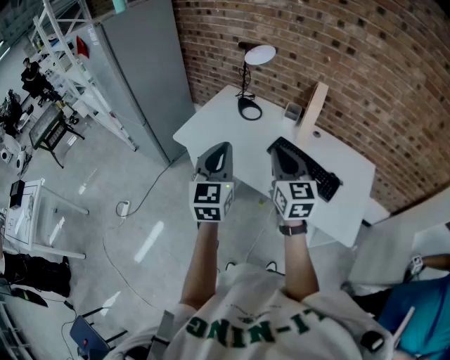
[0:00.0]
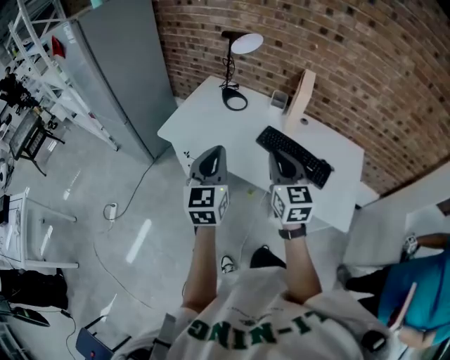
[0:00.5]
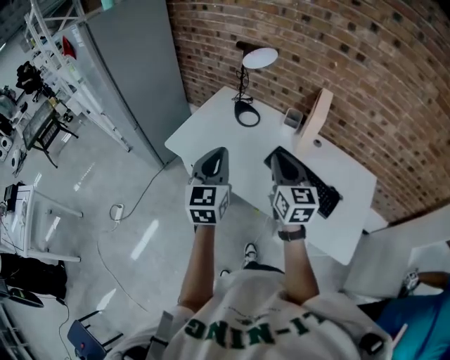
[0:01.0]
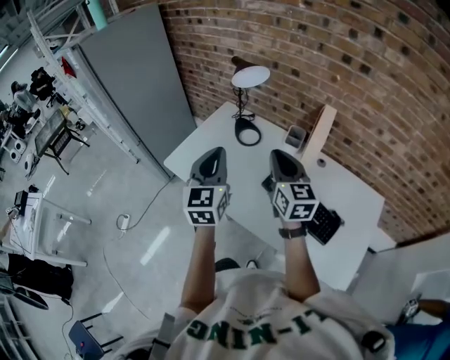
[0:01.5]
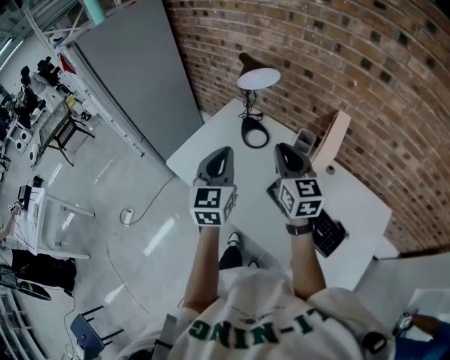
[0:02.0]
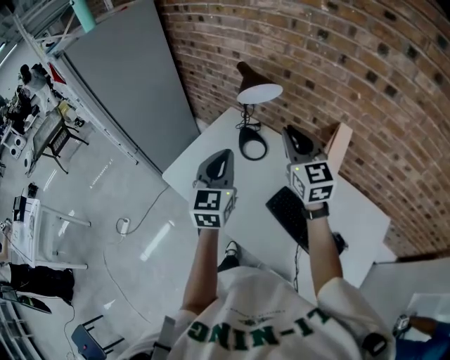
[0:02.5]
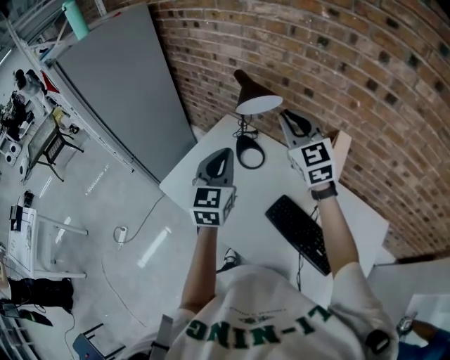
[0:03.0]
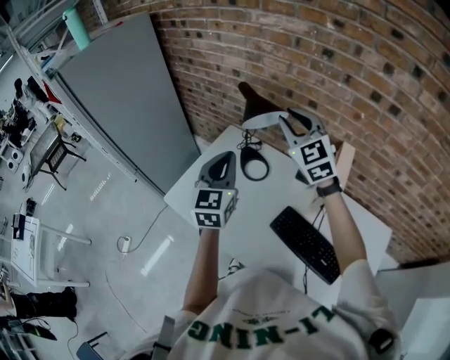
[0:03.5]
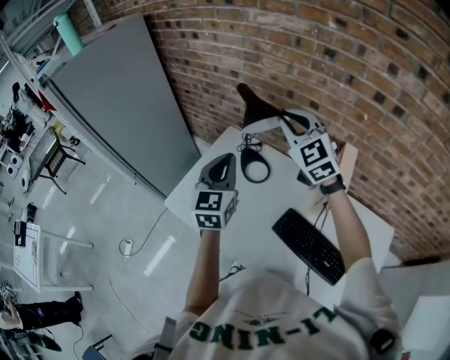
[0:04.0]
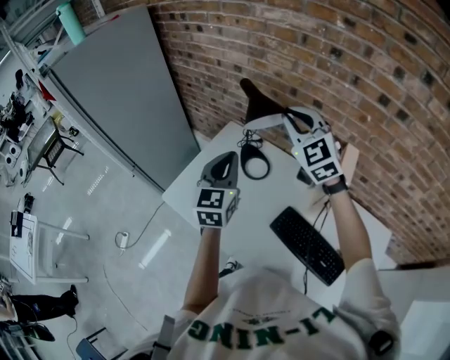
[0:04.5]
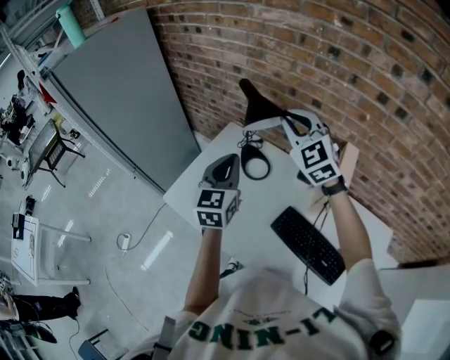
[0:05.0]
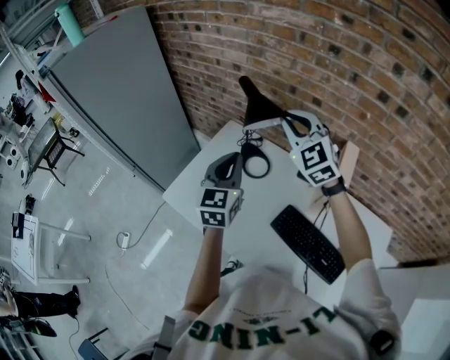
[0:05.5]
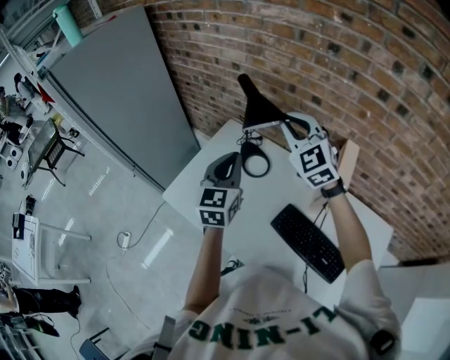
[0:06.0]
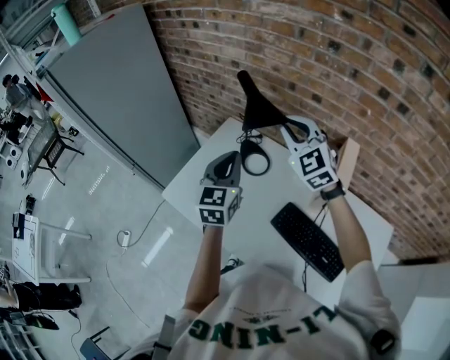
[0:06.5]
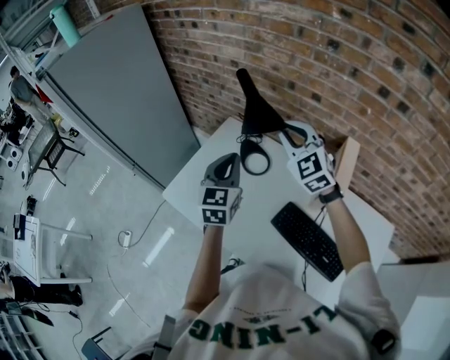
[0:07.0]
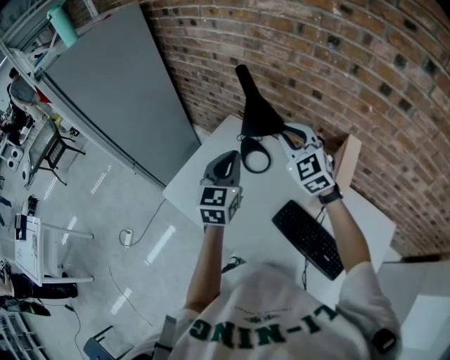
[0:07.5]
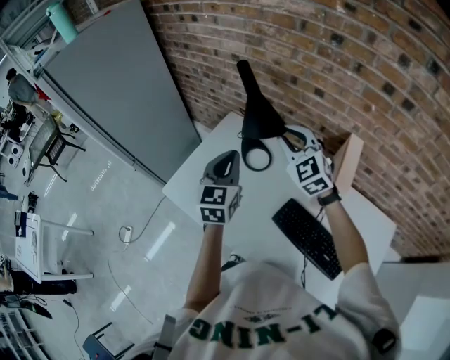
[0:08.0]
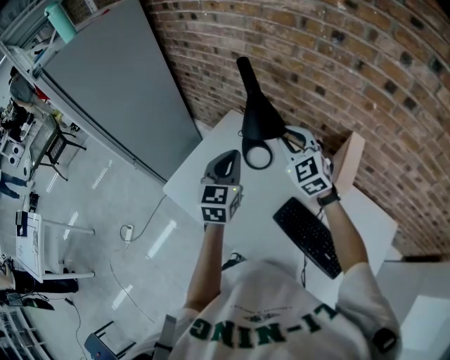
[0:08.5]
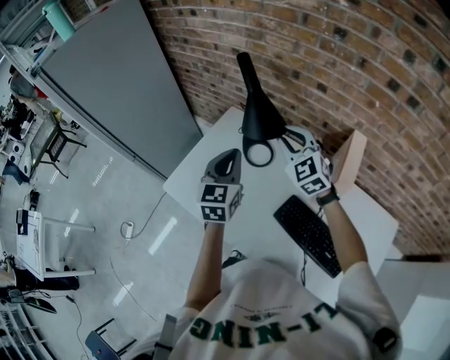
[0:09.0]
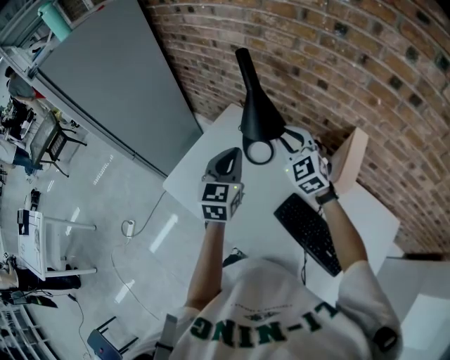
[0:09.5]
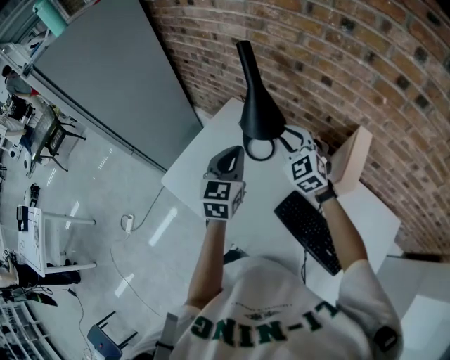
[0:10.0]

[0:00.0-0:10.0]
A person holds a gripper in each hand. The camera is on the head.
0:00.0 to 0:02.0: Both grippers travel together forward, about 25 cm.
0:02.0 to 0:04.0: The right gripper travels forward and upward by about 25 cm, and swivels approximately 40 degrees, while the left gripper goes approximately 15 cm forward.
0:04.0 to 0:06.0: The grippers move only a little.
0:06.0 to 0:08.0: The right gripper travels downward by some 10 cm.
0:08.0 to 0:10.0: The right gripper travels downward by about 10 cm.

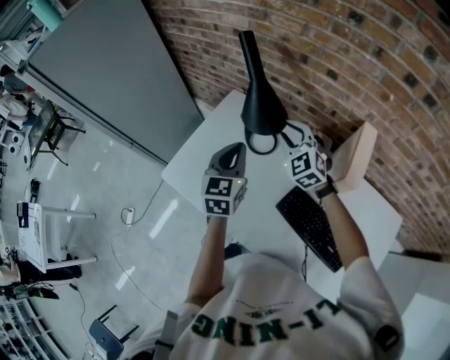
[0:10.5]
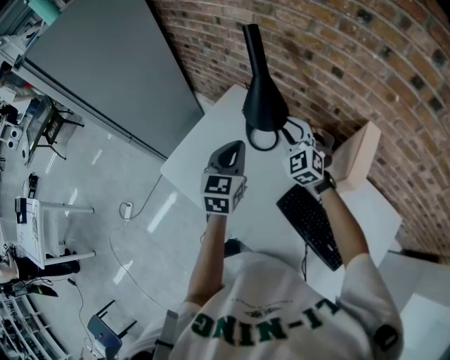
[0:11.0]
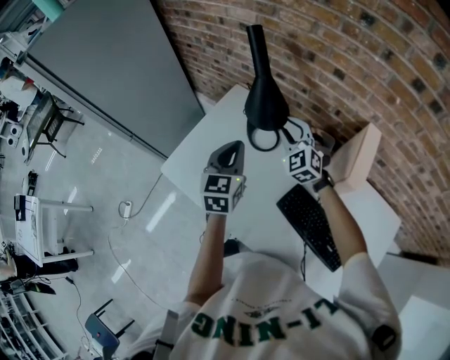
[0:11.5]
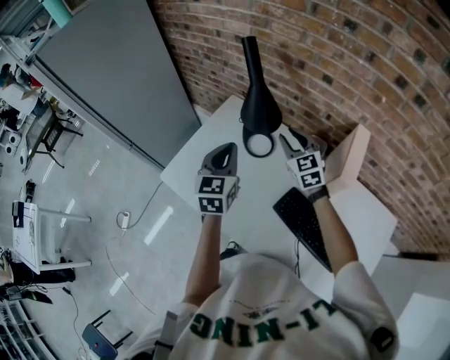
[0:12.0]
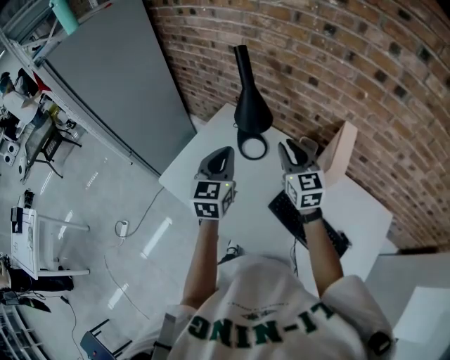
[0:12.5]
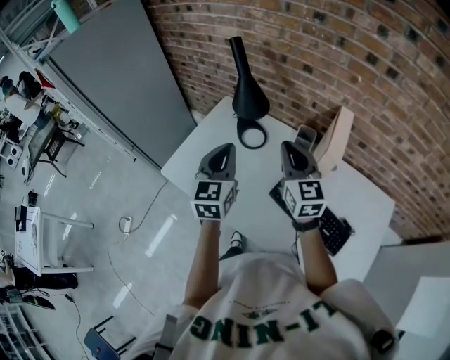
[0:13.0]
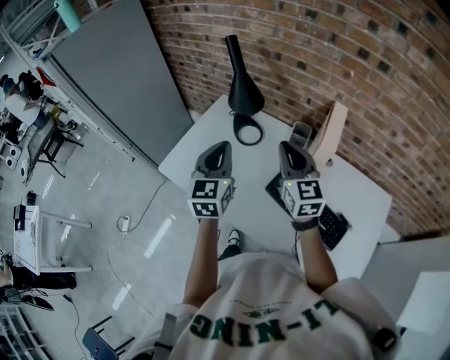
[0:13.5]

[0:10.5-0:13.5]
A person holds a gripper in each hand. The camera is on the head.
0:10.5 to 0:12.0: The right gripper changes its angle by about 20 degrees.
0:12.0 to 0:13.5: The left gripper goes approximately 15 cm backward and upward, while the right gripper moves backward and upward, some 20 cm, rotates about 20 degrees, and closes its fingers.

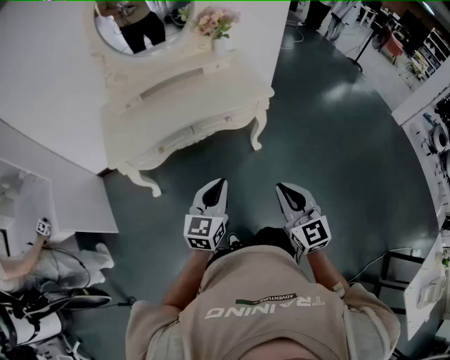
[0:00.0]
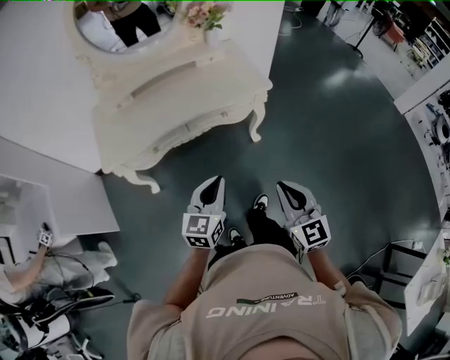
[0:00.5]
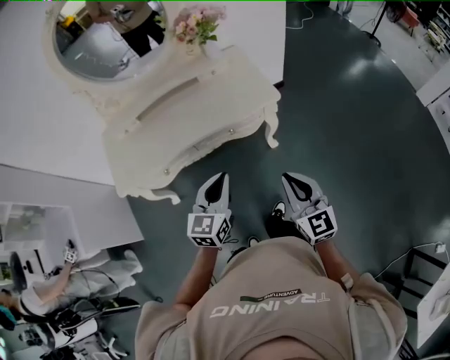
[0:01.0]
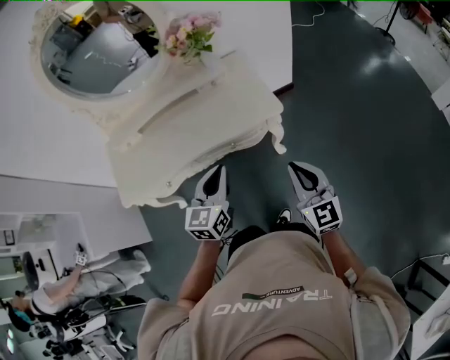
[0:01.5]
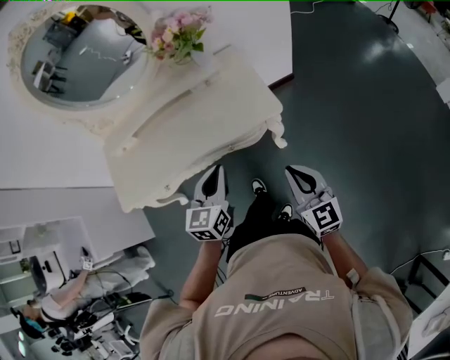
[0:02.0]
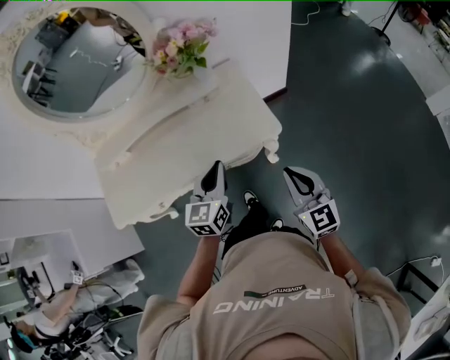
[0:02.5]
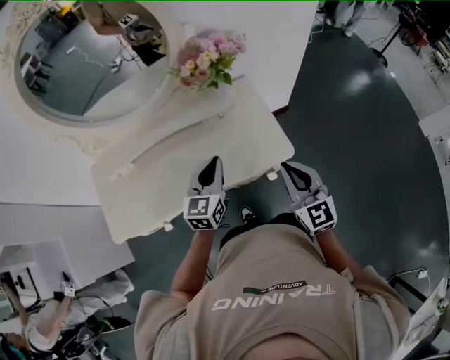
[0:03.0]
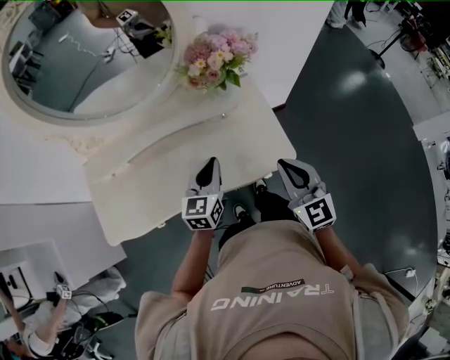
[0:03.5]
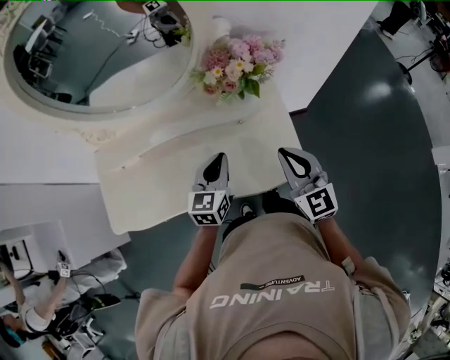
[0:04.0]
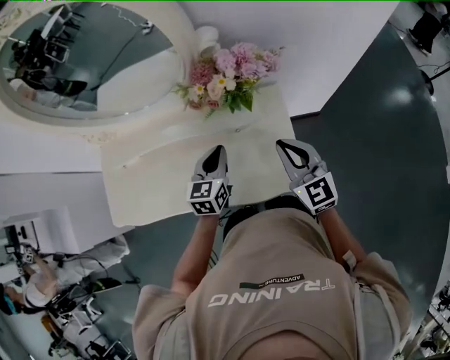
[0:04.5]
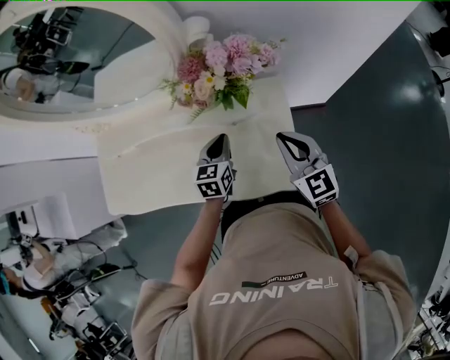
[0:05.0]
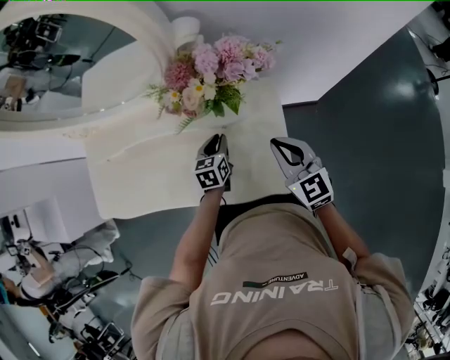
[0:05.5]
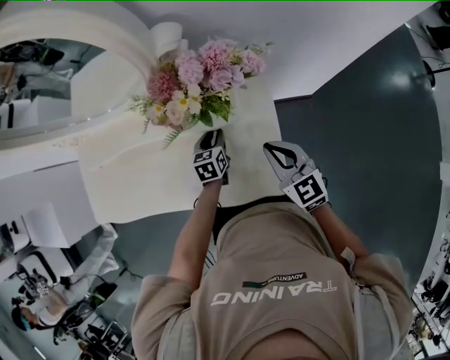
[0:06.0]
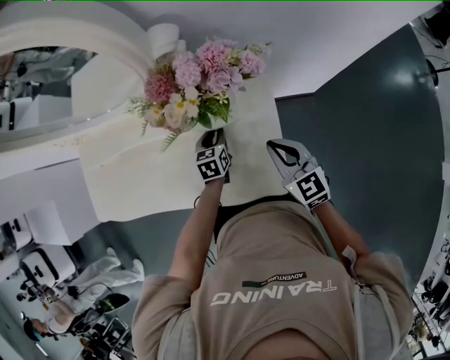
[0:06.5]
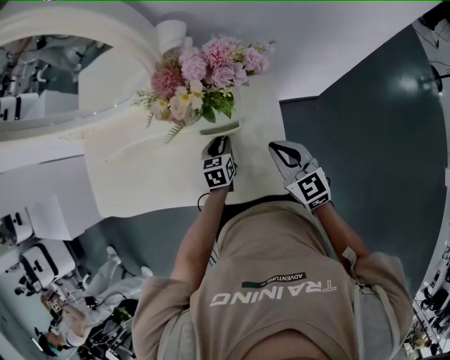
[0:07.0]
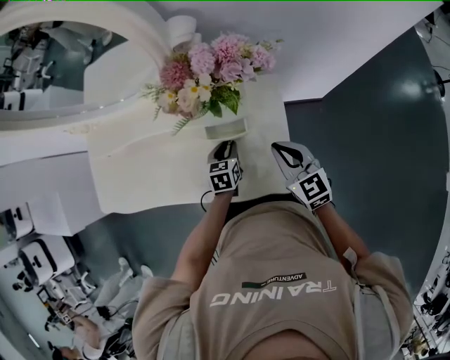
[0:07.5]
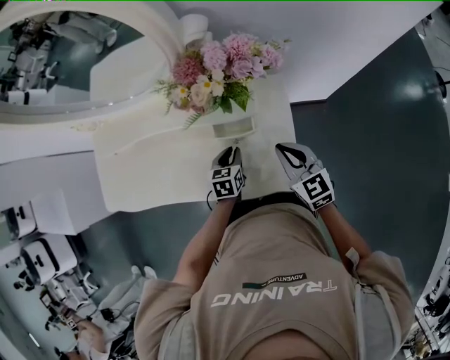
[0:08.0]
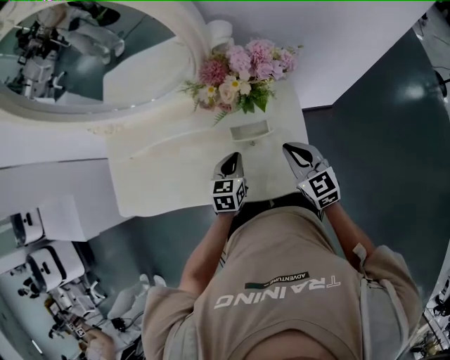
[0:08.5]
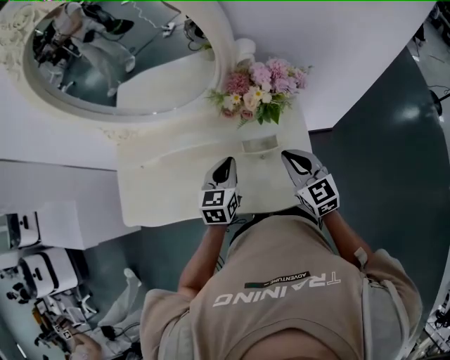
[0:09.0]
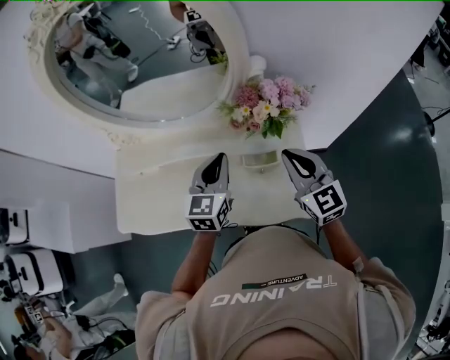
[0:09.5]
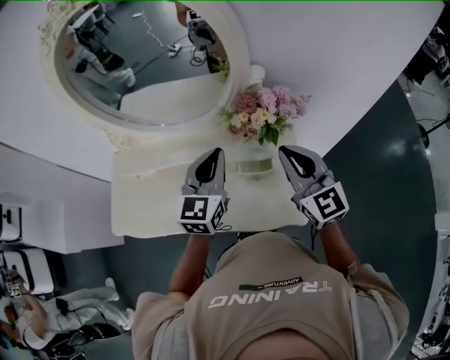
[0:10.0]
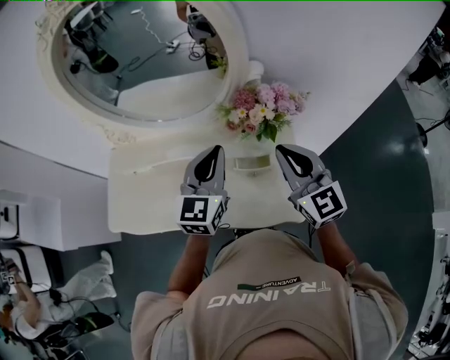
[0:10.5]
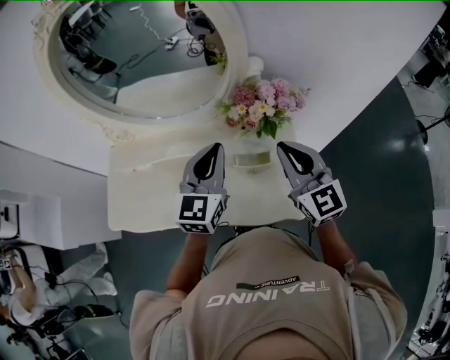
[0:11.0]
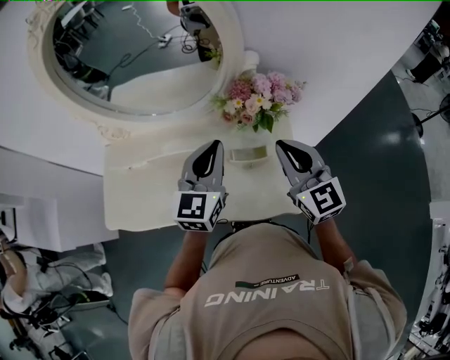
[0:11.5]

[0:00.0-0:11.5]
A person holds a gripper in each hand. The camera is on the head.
0:00.0 to 0:02.0: The left gripper heads forward, covering roughly 30 cm; the right gripper travels forward and to the right by some 35 cm.
0:02.0 to 0:04.0: Both grippers move forward, approximately 25 cm.
0:04.0 to 0:06.0: The left gripper is displaced downward, forward and to the right by about 25 cm, rotates some 30 degrees, and opens up. The right gripper moves downward, to the right and forward, roughly 15 cm, and turns by some 20 degrees.
0:06.0 to 0:07.5: The left gripper goes some 5 cm backward.
0:07.5 to 0:09.5: The right gripper shifts about 20 cm upward and to the left. The left gripper travels upward by approximately 30 cm, angles its fingers upward, by roughly 30 degrees, and closes up.
0:09.5 to 0:11.5: The left gripper moves upward, some 5 cm.

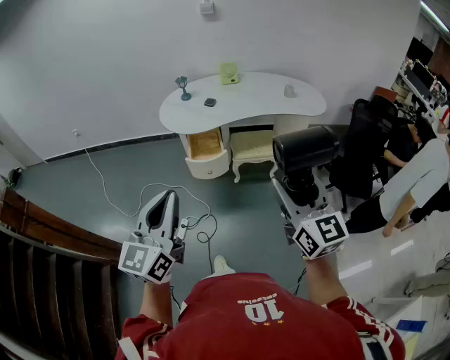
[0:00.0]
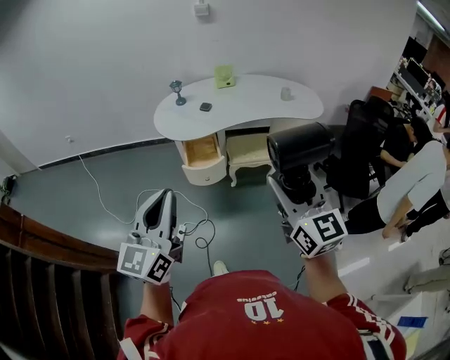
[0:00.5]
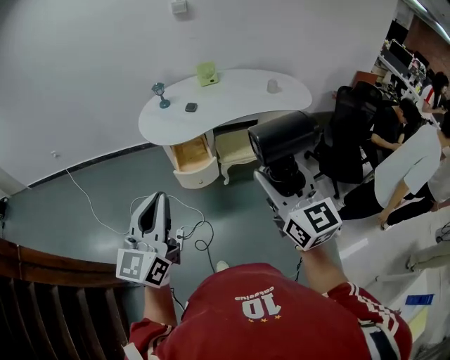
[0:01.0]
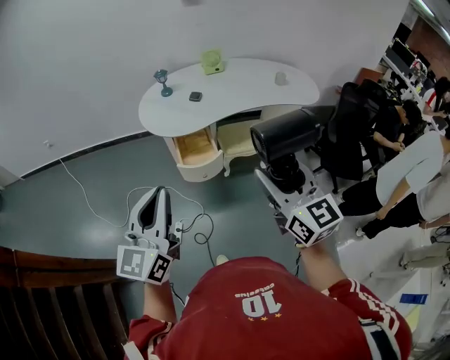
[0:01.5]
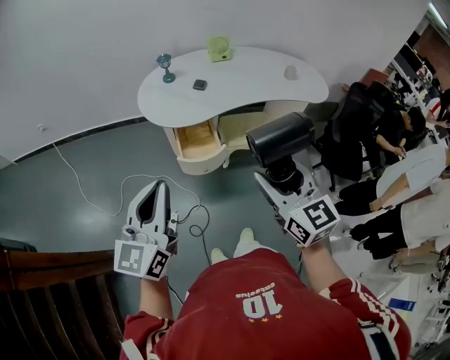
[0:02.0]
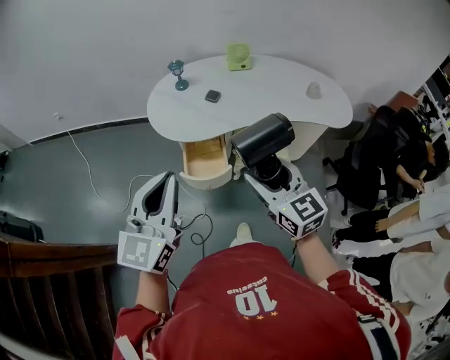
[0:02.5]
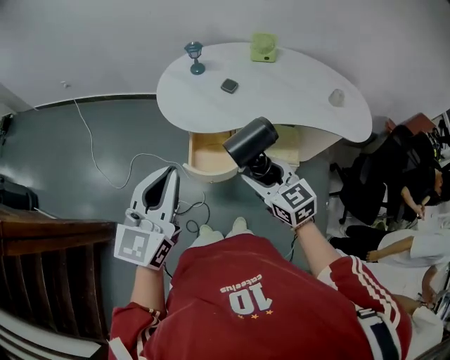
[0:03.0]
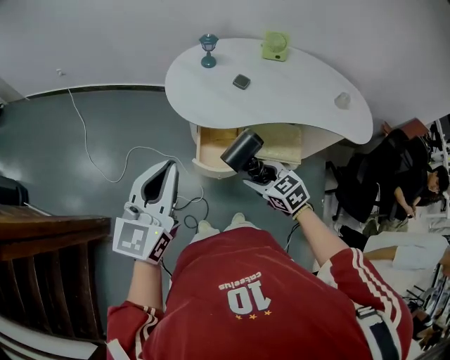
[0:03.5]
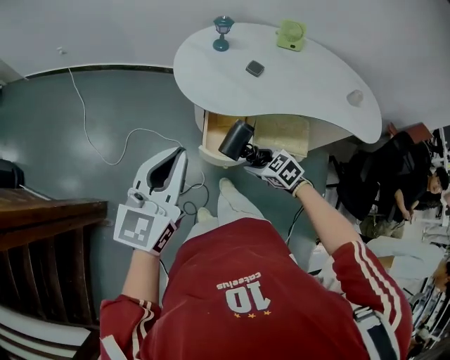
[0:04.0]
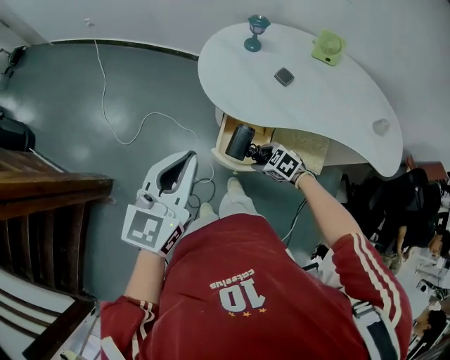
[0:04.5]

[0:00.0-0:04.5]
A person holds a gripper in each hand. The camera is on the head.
0:00.0 to 0:02.0: The left gripper shifts some 20 cm forward and to the left; the right gripper shifts approximately 25 cm forward, to the left and downward.
0:02.0 to 0:04.5: The right gripper moves downward, roughly 40 cm, and tilts its fingers about 50 degrees downward. The left gripper shifts by approximately 25 cm, and turns by roughly 20 degrees.
